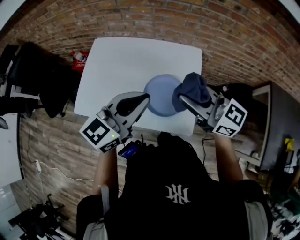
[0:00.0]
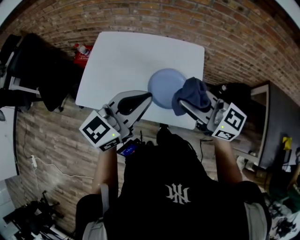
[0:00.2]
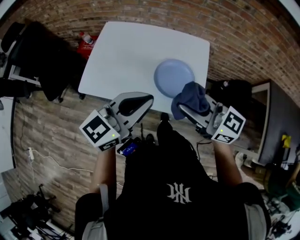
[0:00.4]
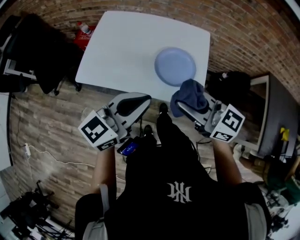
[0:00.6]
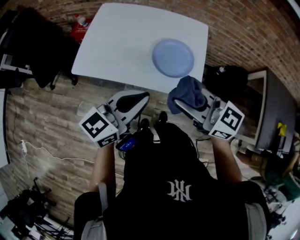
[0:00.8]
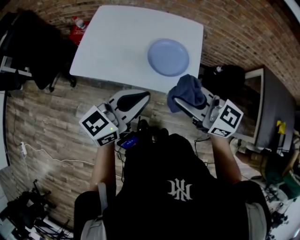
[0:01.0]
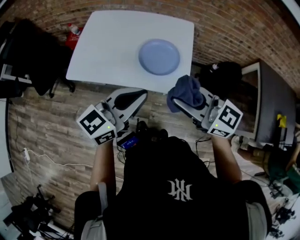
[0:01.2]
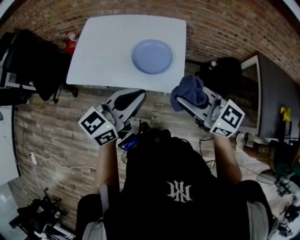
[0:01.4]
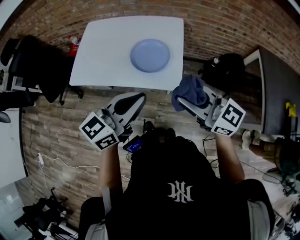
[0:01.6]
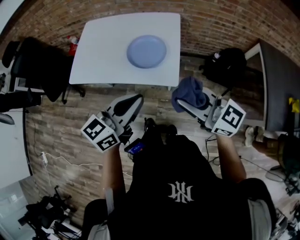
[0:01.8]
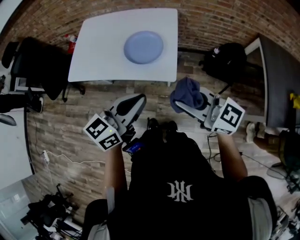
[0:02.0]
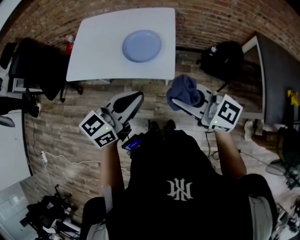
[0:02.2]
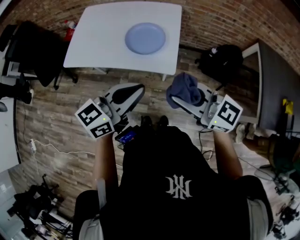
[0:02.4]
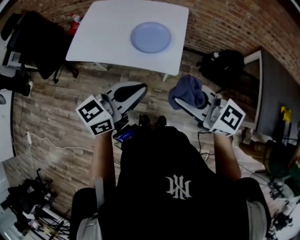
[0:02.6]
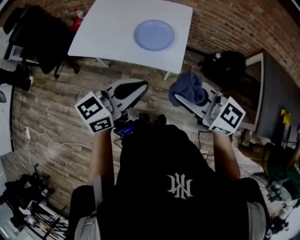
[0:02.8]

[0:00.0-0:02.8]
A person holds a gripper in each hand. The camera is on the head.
0:00.0 to 0:01.4: Both grippers travel together backward, about 20 cm.
0:01.4 to 0:02.8: Both grippers move backward, some 10 cm.

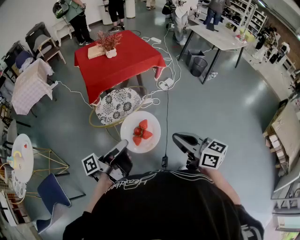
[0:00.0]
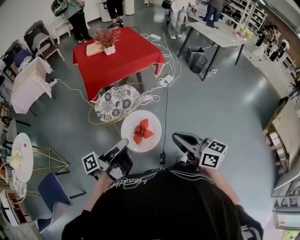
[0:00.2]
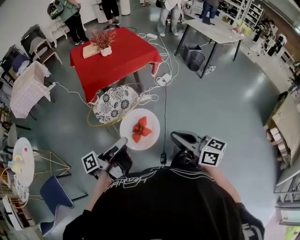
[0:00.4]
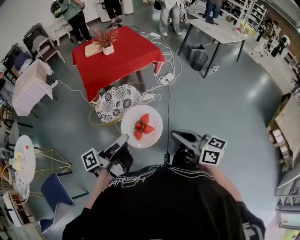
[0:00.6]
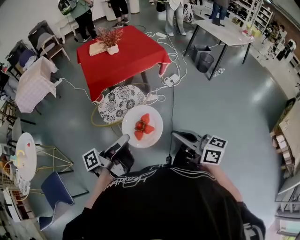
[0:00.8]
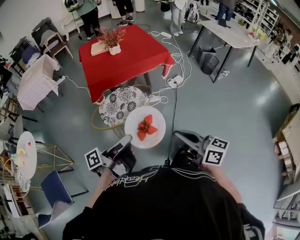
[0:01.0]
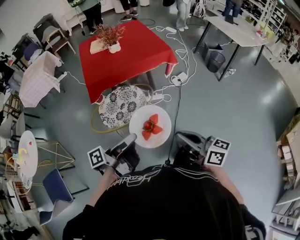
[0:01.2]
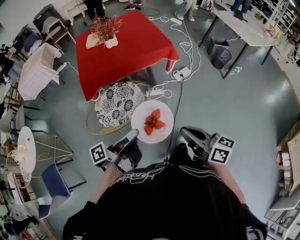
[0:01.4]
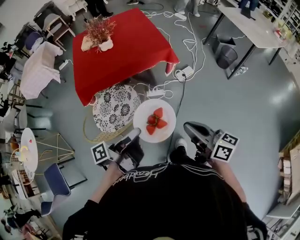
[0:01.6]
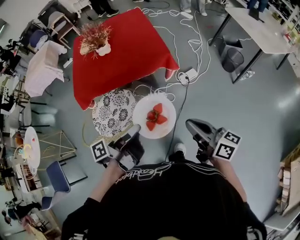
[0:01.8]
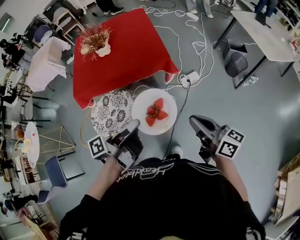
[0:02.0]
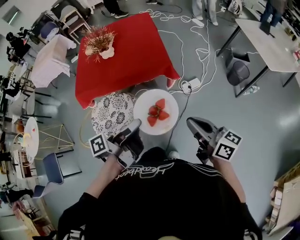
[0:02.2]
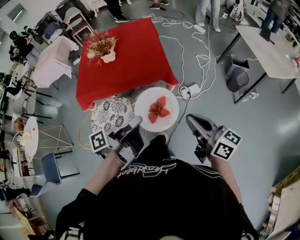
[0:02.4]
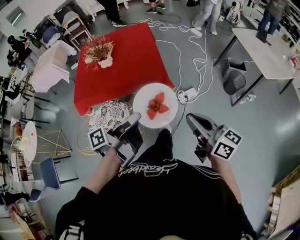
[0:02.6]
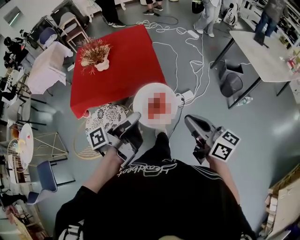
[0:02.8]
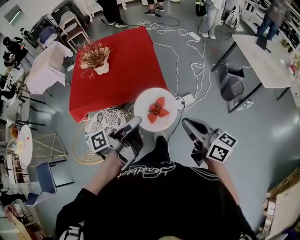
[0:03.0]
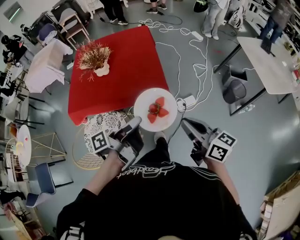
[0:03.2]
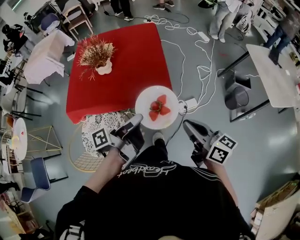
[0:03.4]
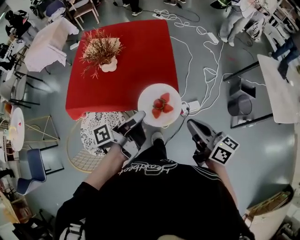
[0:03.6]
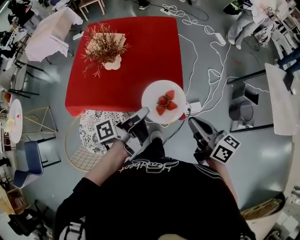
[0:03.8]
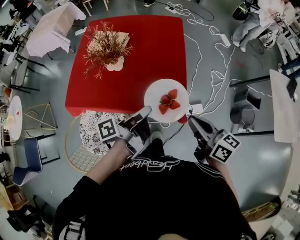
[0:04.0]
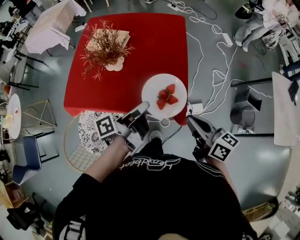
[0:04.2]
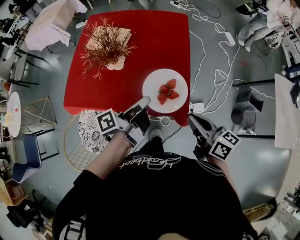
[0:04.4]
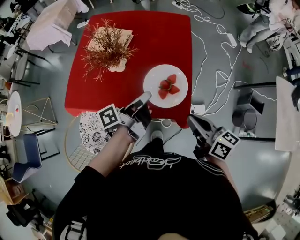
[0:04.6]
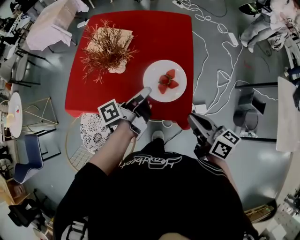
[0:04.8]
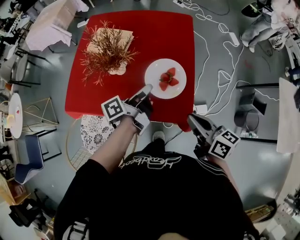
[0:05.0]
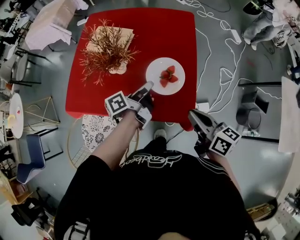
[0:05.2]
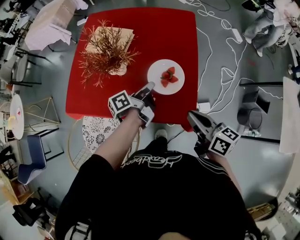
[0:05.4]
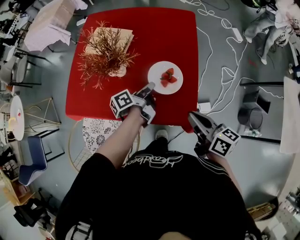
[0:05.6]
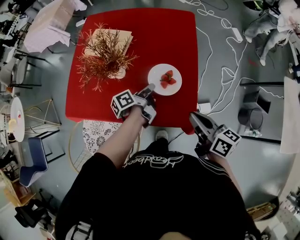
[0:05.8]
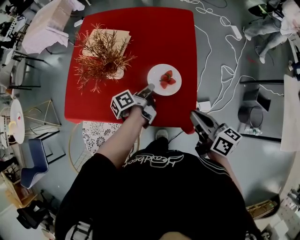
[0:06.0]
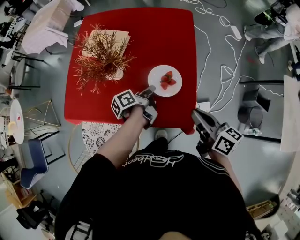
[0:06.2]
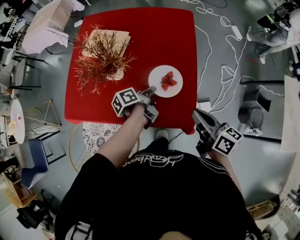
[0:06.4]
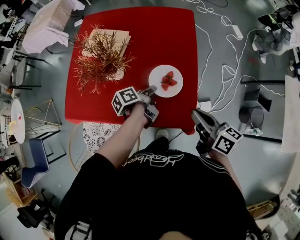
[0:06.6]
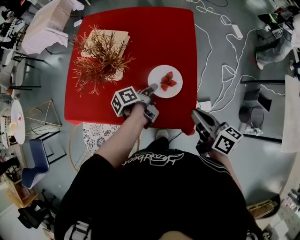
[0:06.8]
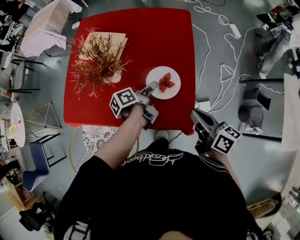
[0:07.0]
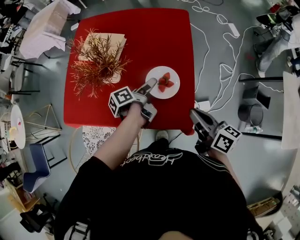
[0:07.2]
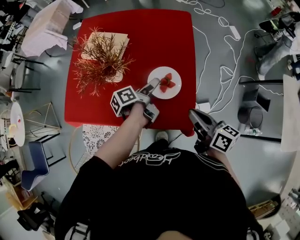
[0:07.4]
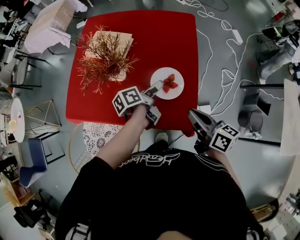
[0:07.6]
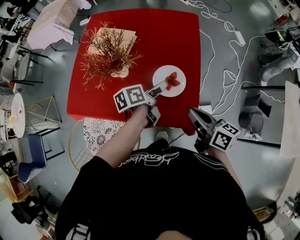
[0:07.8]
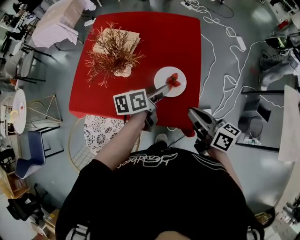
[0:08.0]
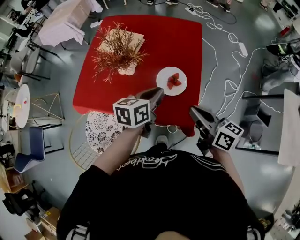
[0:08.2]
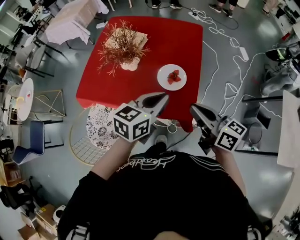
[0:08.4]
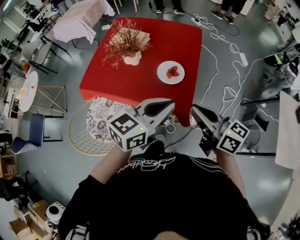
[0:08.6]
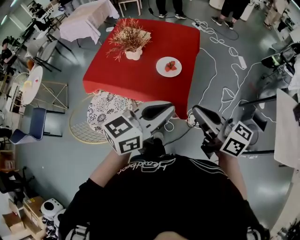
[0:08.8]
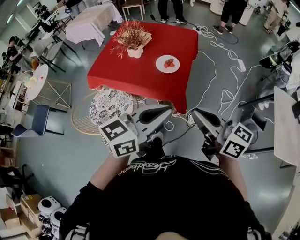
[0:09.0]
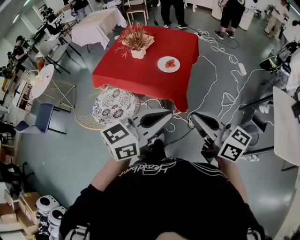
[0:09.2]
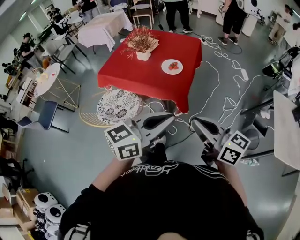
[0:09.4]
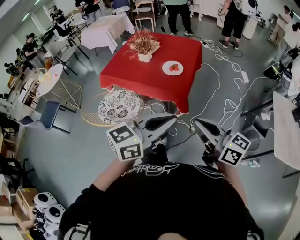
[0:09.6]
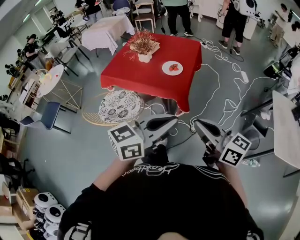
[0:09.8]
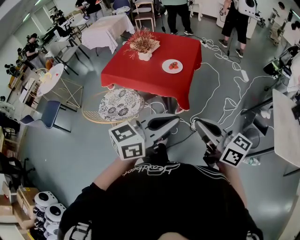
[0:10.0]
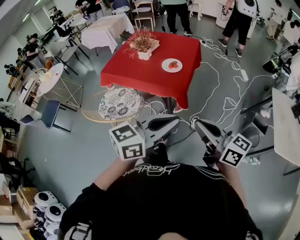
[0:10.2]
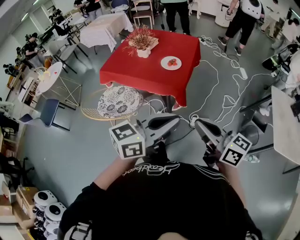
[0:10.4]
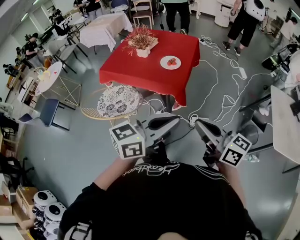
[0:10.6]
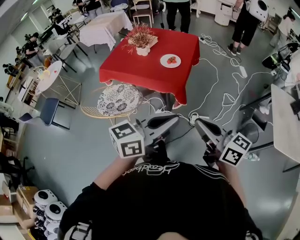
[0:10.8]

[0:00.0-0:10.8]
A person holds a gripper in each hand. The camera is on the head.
0:00.0 to 0:01.6: The right gripper ends up roughly 35 cm from where it was.
0:01.6 to 0:03.0: The right gripper shifts by about 25 cm.
0:03.0 to 0:04.6: The right gripper changes place by some 35 cm, and turns by approximately 20 degrees.
0:04.6 to 0:06.2: The right gripper ends up some 10 cm from where it was.
0:07.8 to 0:09.2: The right gripper moves roughly 40 cm, and swivels roughly 30 degrees.

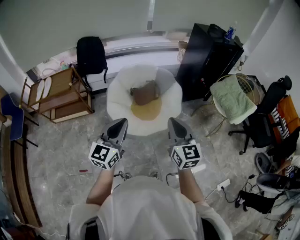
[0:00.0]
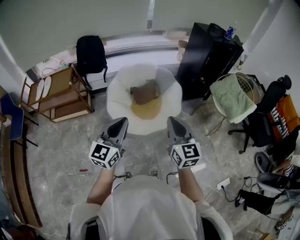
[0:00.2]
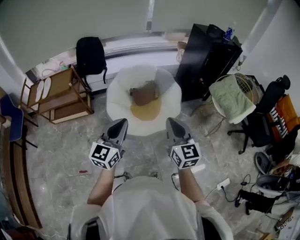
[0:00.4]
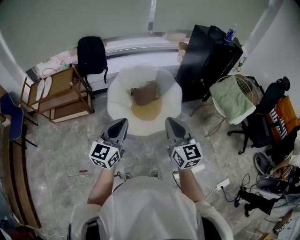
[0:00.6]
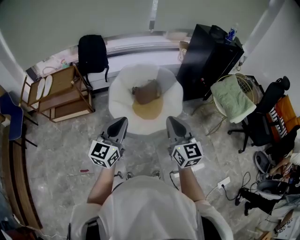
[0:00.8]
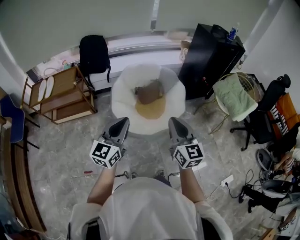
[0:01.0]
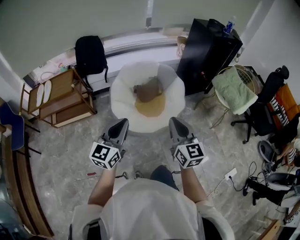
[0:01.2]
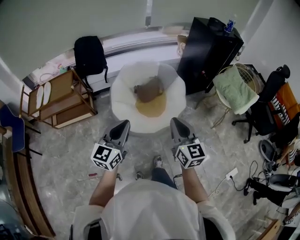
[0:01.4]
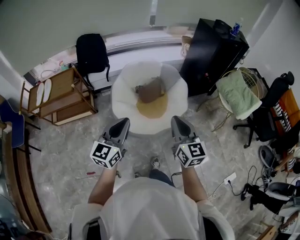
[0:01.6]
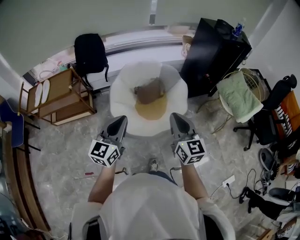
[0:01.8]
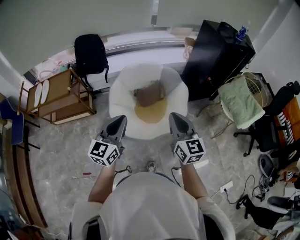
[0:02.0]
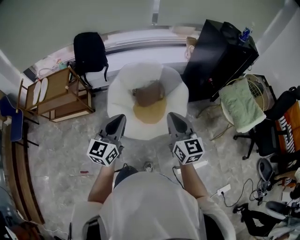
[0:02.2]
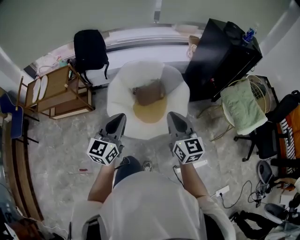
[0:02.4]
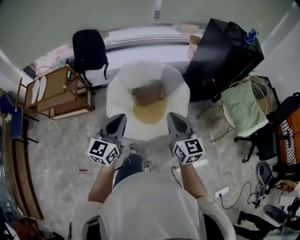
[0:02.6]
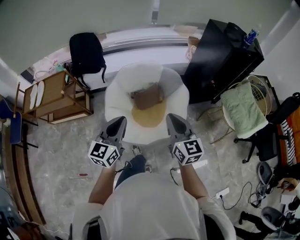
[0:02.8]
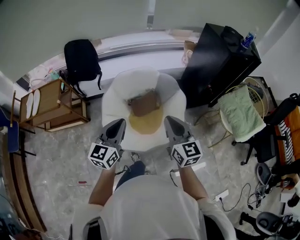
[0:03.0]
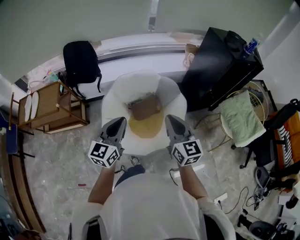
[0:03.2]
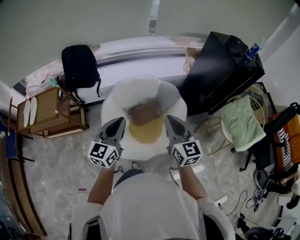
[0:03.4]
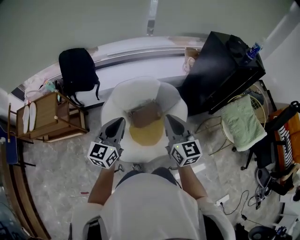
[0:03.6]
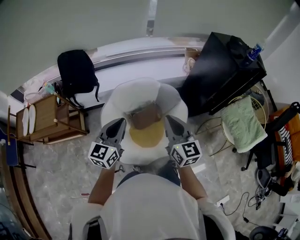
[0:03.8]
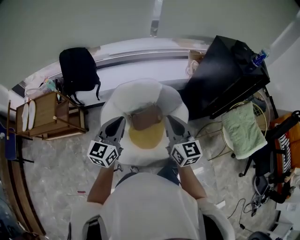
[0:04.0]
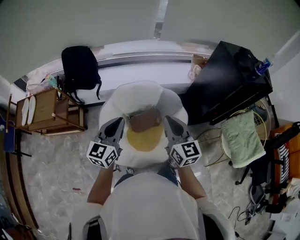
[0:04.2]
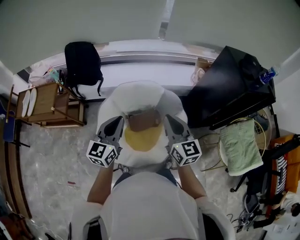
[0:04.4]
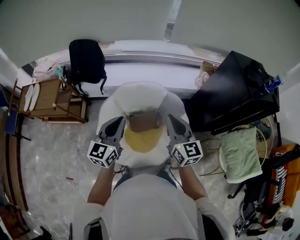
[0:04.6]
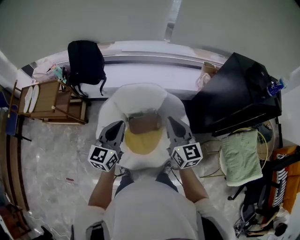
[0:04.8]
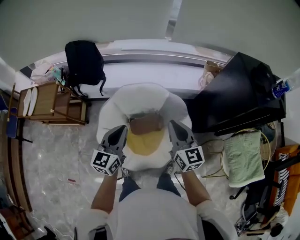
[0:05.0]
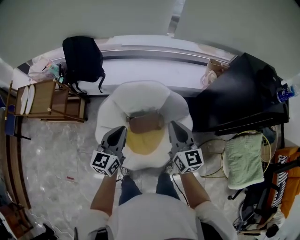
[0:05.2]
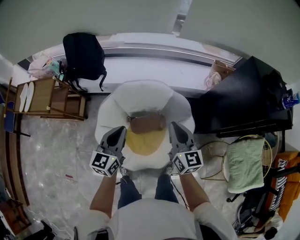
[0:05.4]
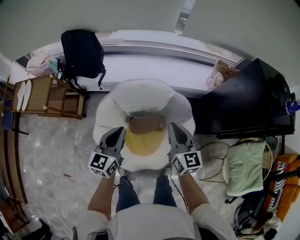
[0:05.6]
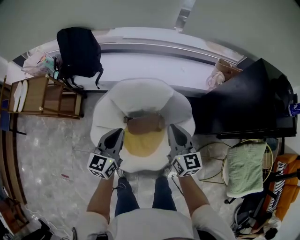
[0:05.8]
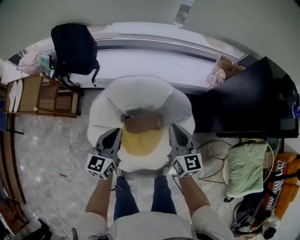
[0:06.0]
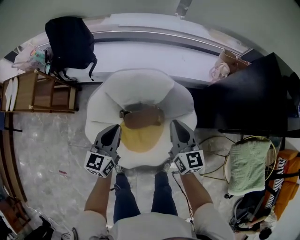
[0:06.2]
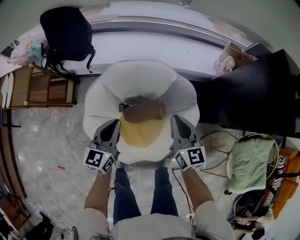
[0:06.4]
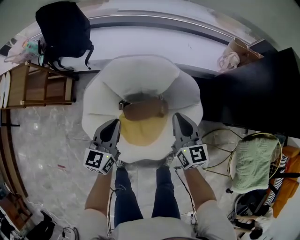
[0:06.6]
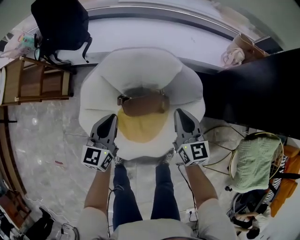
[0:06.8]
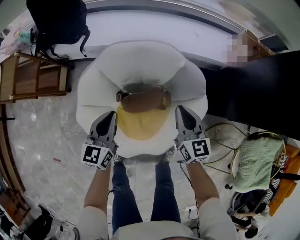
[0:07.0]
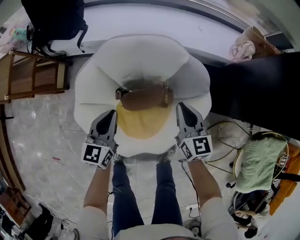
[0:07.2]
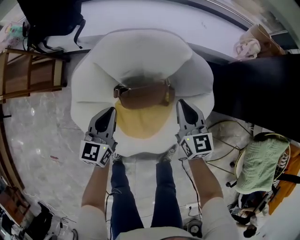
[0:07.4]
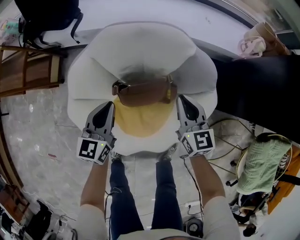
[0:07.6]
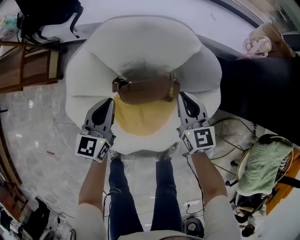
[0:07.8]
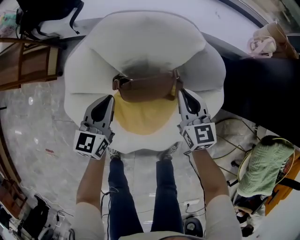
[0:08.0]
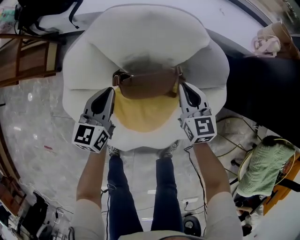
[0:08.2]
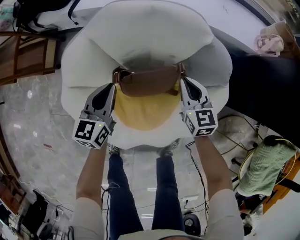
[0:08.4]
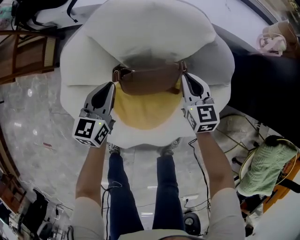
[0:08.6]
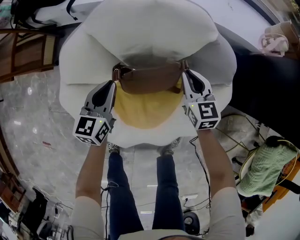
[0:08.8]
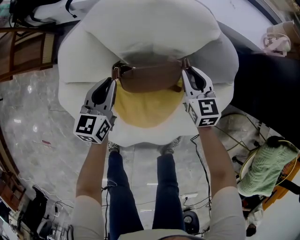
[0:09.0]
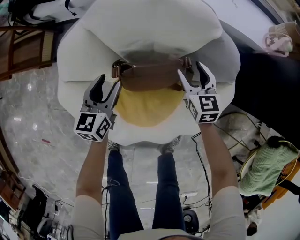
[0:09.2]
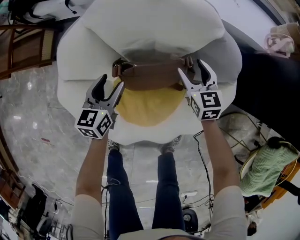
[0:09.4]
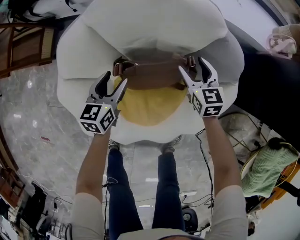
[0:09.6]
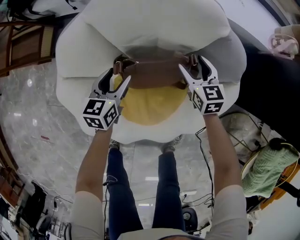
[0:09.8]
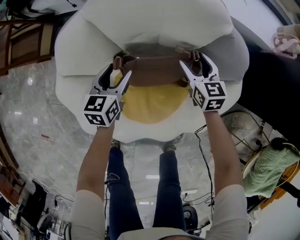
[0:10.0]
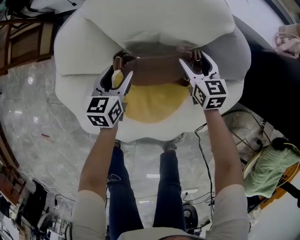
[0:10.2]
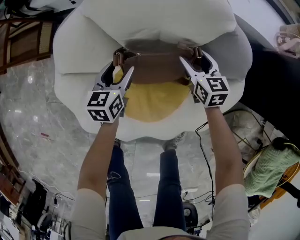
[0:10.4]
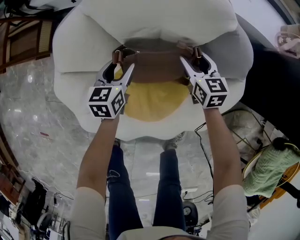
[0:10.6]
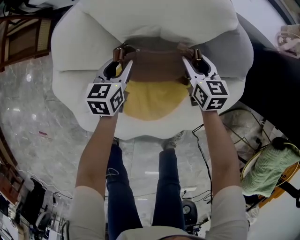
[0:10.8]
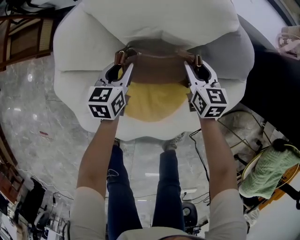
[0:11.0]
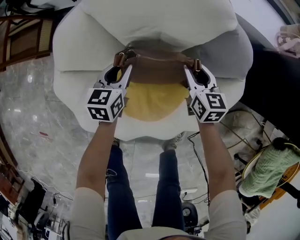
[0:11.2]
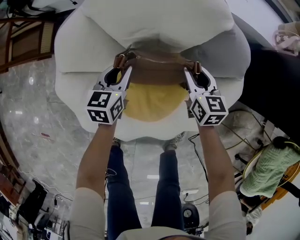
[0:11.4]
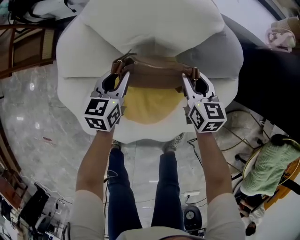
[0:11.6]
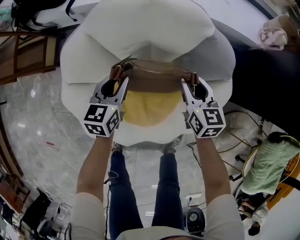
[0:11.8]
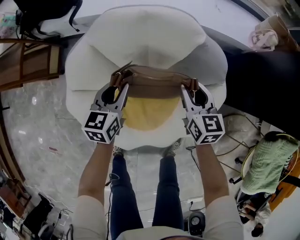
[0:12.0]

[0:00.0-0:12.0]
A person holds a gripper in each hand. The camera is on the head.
0:00.0 to 0:01.6: The two grippers go some 5 cm to the left.
0:01.6 to 0:03.0: Both grippers move forward, roughly 20 cm.
0:03.0 to 0:04.4: Both grippers move forward, roughly 20 cm.
0:04.4 to 0:06.0: The grippers both shift downward and forward by some 20 cm.
0:06.0 to 0:07.6: The grippers both shift downward by approximately 25 cm.
0:07.6 to 0:09.0: The two grippers go approximately 15 cm downward.
0:09.0 to 0:10.4: Both grippers move downward, roughly 10 cm. The right gripper opens its fingers. The left gripper opens.
0:10.4 to 0:12.0: Both grippers travel together upward, approximately 15 cm. The left gripper closes its fingers; the right gripper closes.
